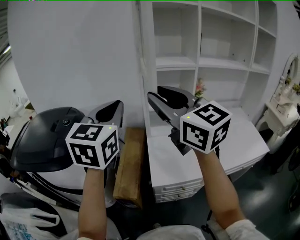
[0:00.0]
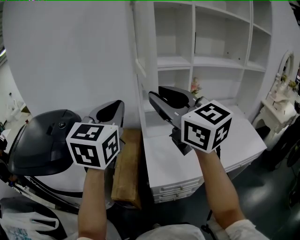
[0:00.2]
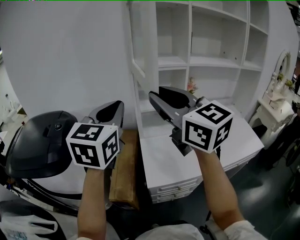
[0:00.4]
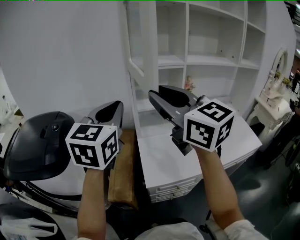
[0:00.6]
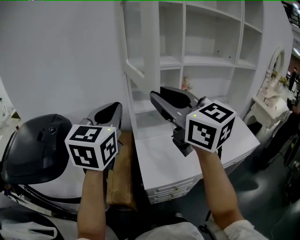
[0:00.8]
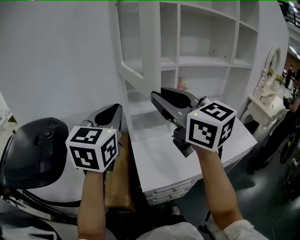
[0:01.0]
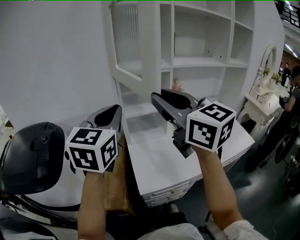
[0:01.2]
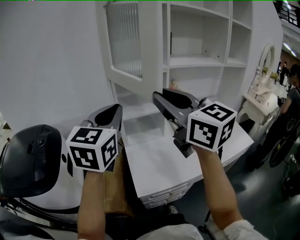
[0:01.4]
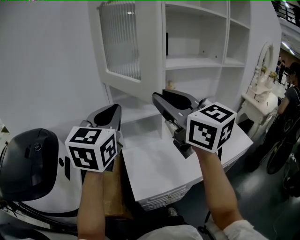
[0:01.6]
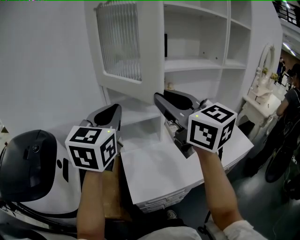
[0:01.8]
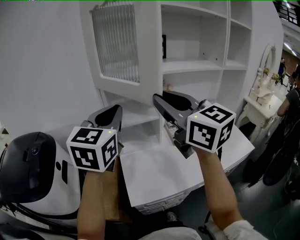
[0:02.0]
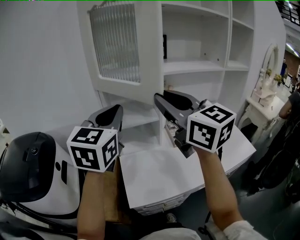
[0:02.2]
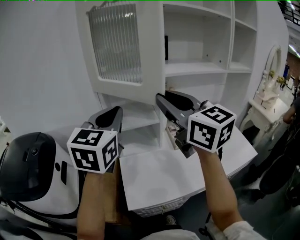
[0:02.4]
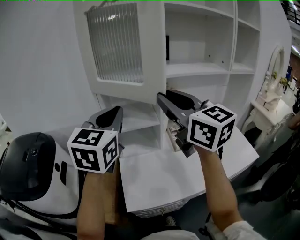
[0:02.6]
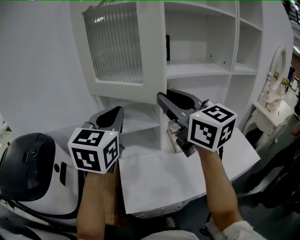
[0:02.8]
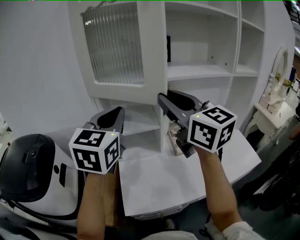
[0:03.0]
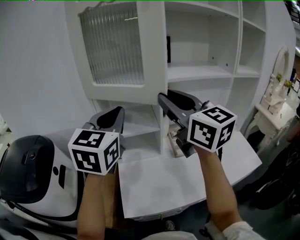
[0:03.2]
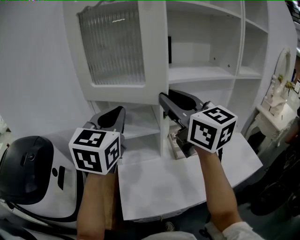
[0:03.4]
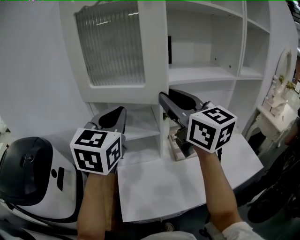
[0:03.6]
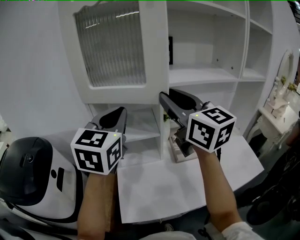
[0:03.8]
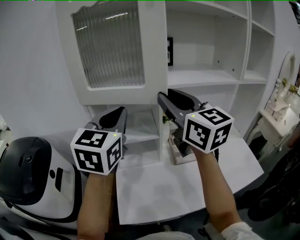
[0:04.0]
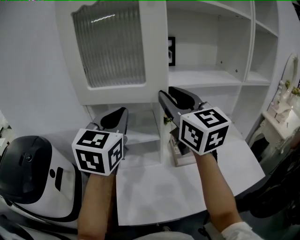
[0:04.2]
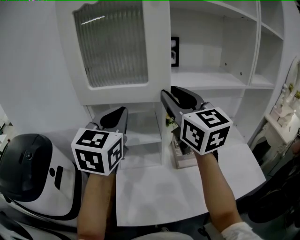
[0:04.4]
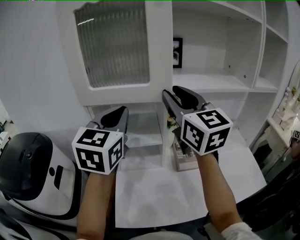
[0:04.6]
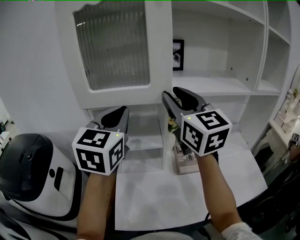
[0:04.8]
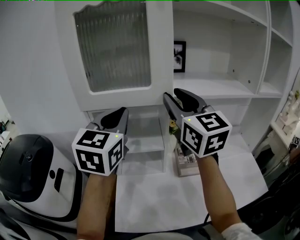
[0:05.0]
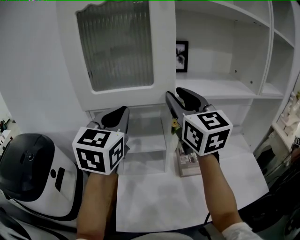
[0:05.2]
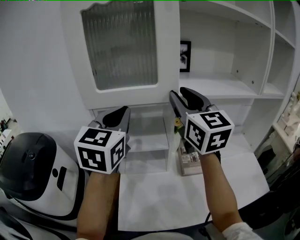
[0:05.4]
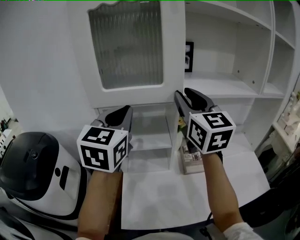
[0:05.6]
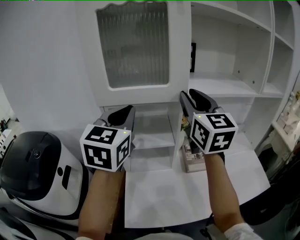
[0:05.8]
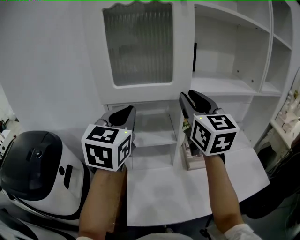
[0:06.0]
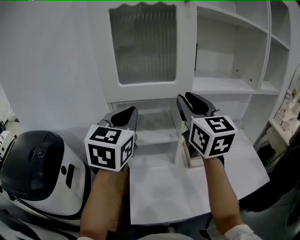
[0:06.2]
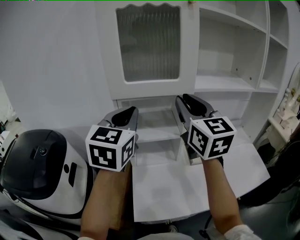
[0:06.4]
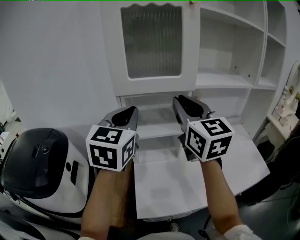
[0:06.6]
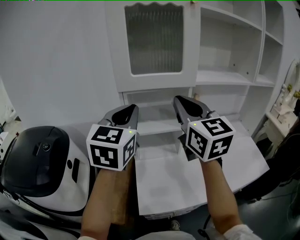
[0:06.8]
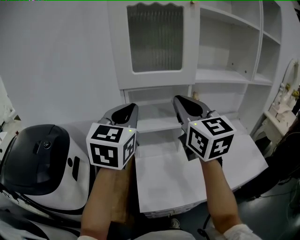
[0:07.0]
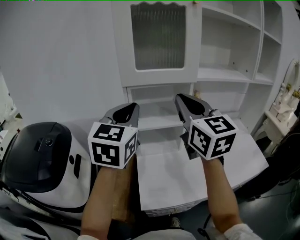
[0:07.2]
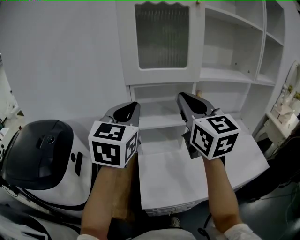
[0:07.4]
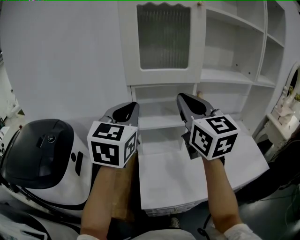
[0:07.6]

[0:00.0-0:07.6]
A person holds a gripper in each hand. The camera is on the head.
0:00.0 to 0:01.6: The left gripper goes approximately 15 cm to the right and forward. The right gripper travels to the right by about 15 cm.
0:01.6 to 0:03.0: The left gripper travels to the right and forward by roughly 10 cm. The right gripper moves forward and to the right, some 15 cm.
0:03.0 to 0:04.6: The two grippers go roughly 10 cm forward.
0:04.6 to 0:06.0: The left gripper heads to the left, covering approximately 5 cm.
0:06.0 to 0:07.6: The two grippers go roughly 15 cm backward and to the left. The right gripper closes its fingers.

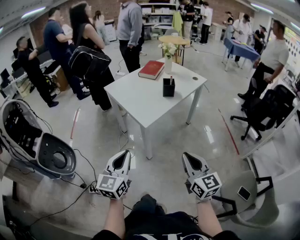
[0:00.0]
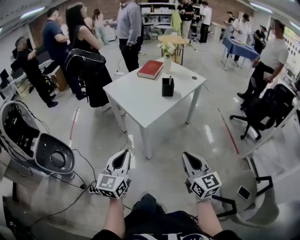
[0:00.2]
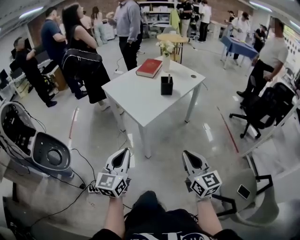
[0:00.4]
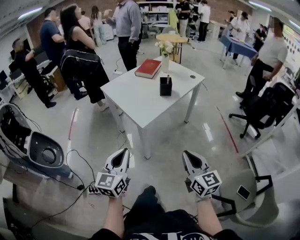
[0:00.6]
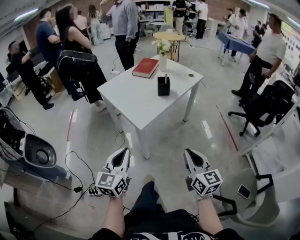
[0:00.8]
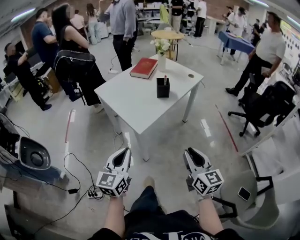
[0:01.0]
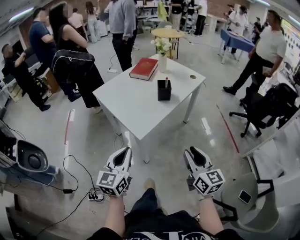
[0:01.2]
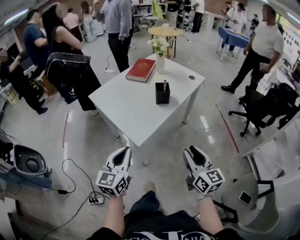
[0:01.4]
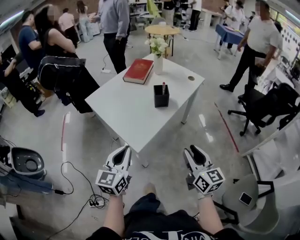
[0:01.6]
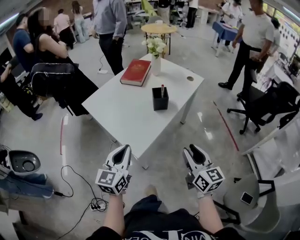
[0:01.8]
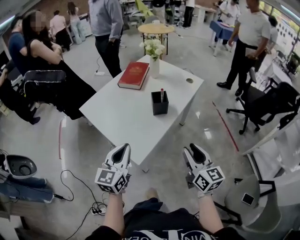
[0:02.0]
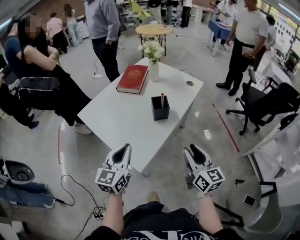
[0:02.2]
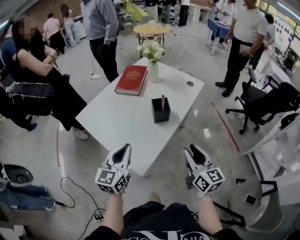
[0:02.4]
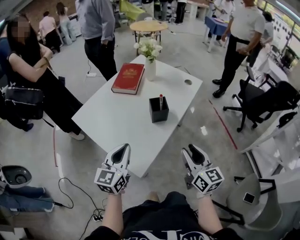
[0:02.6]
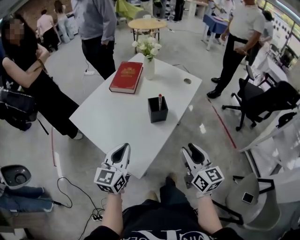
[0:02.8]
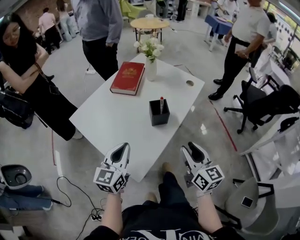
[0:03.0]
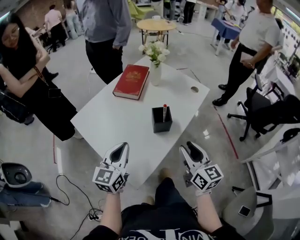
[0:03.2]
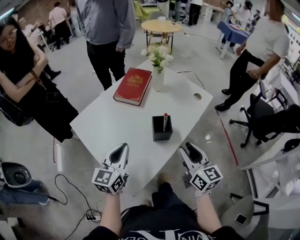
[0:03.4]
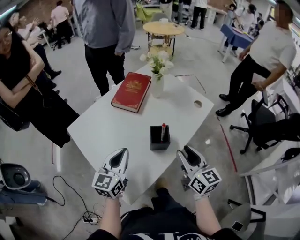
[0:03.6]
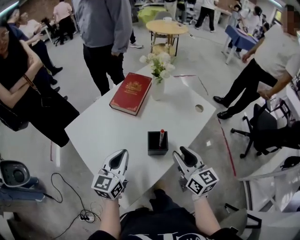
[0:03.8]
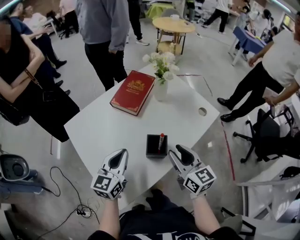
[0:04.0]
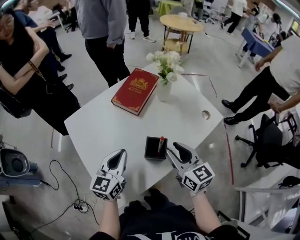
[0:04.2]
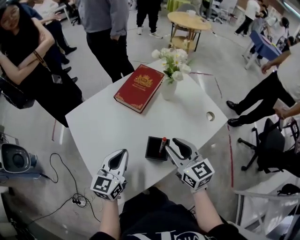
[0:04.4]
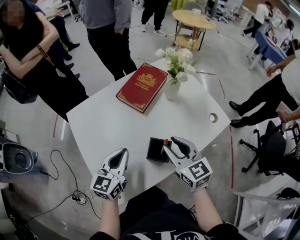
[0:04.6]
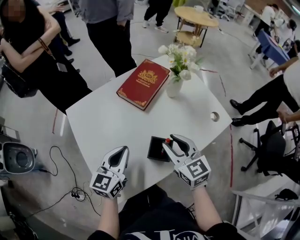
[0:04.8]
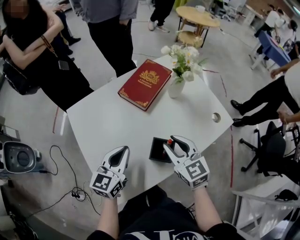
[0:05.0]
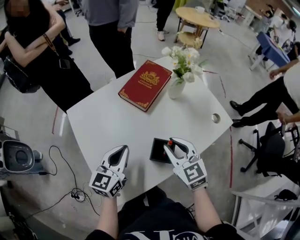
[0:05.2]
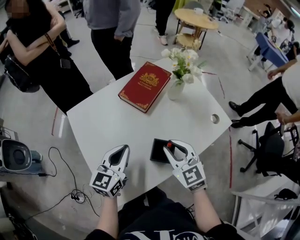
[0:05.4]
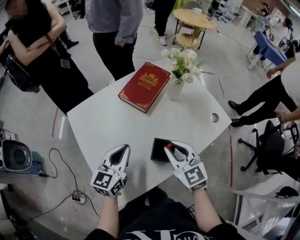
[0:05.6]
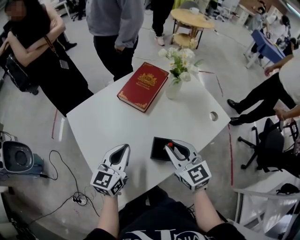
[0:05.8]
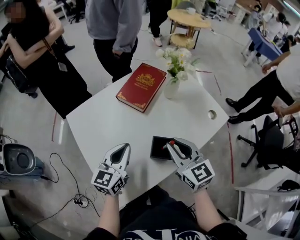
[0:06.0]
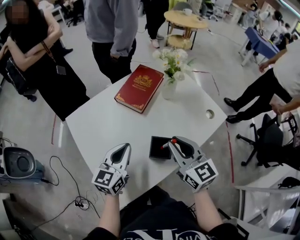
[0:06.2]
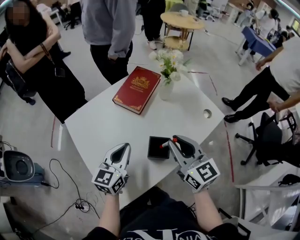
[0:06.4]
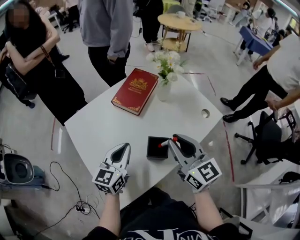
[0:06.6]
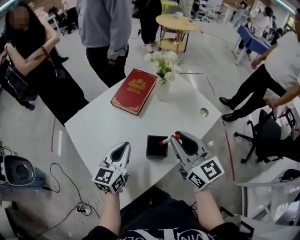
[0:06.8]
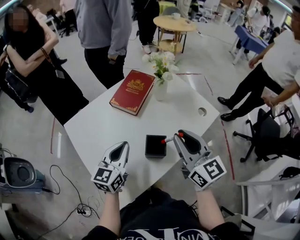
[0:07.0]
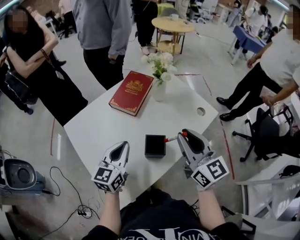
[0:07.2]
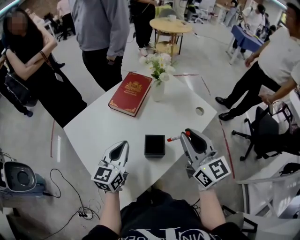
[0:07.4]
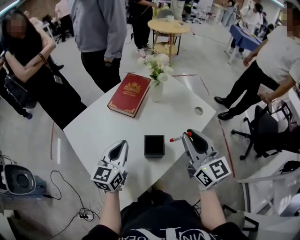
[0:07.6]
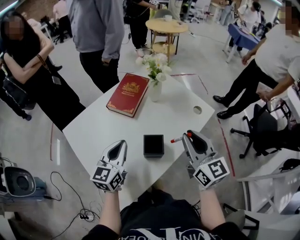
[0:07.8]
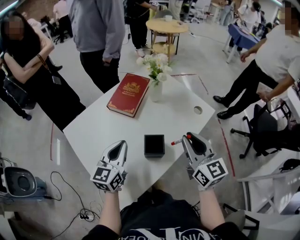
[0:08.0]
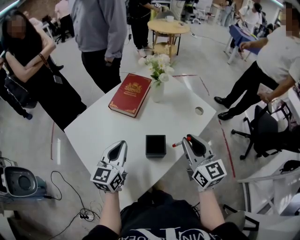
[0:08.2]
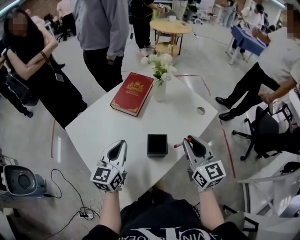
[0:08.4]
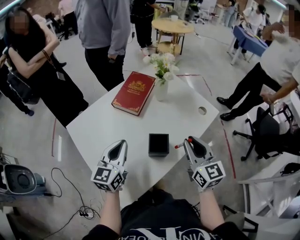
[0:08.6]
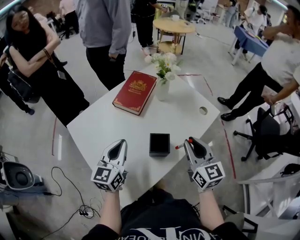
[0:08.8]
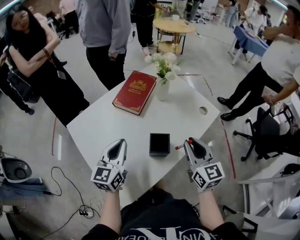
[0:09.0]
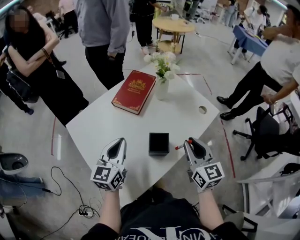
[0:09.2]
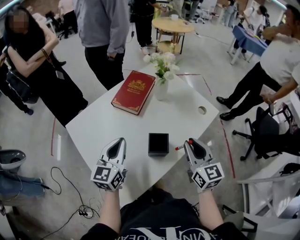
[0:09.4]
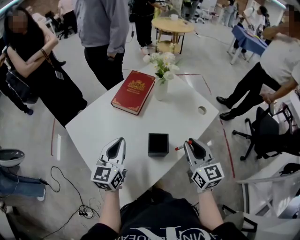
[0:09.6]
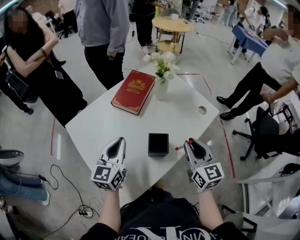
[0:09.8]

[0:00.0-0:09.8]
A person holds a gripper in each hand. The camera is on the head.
0:00.0 to 0:01.4: The grippers both shift forward by roughly 15 cm. The right gripper opens its fingers.
0:01.4 to 0:02.8: The grippers both shift forward by some 20 cm.
0:02.8 to 0:04.2: The left gripper travels forward by about 15 cm. The right gripper moves forward, approximately 25 cm, and changes its angle by approximately 30 degrees.
0:04.2 to 0:05.6: The right gripper ends up approximately 5 cm from where it was, and rotates approximately 20 degrees.
0:05.6 to 0:07.0: The right gripper moves upward and to the right, some 10 cm, and turns by about 30 degrees.
0:07.0 to 0:08.4: The right gripper shifts by some 5 cm.
0:08.4 to 0:09.8: There are only small adjustments of the grippers.

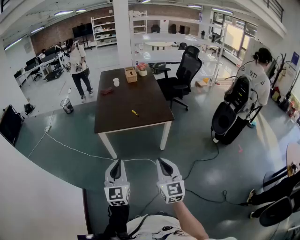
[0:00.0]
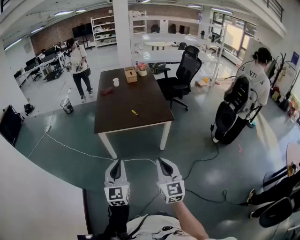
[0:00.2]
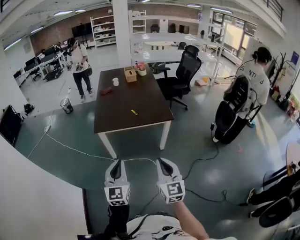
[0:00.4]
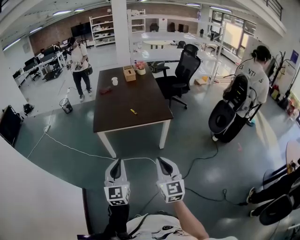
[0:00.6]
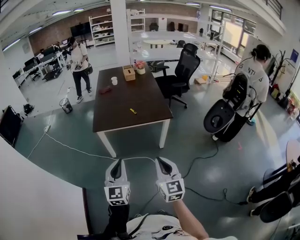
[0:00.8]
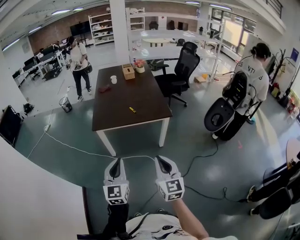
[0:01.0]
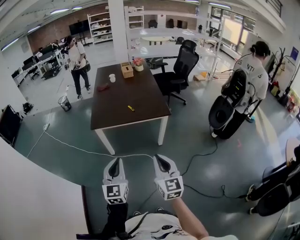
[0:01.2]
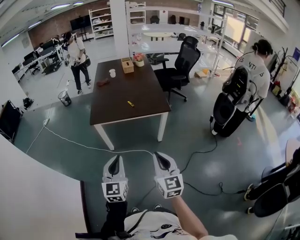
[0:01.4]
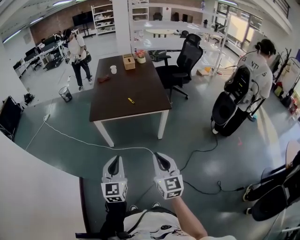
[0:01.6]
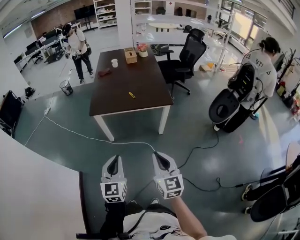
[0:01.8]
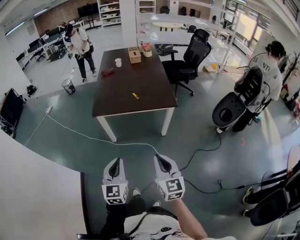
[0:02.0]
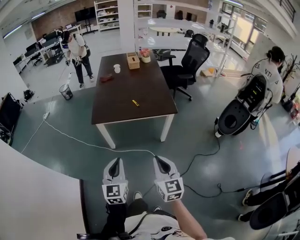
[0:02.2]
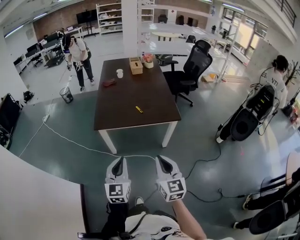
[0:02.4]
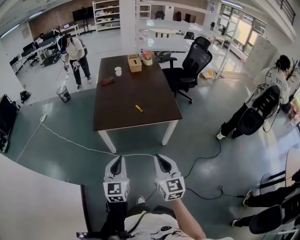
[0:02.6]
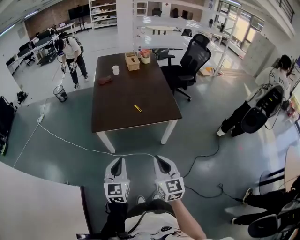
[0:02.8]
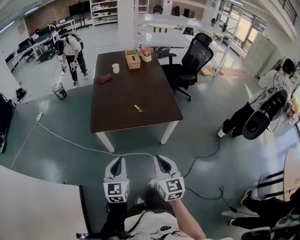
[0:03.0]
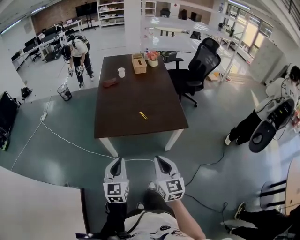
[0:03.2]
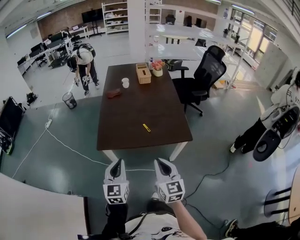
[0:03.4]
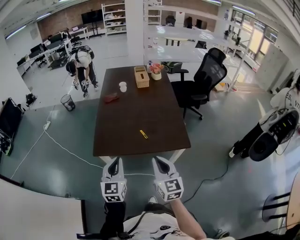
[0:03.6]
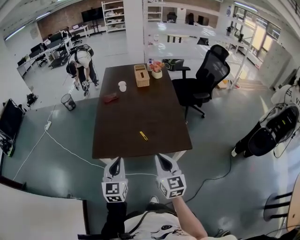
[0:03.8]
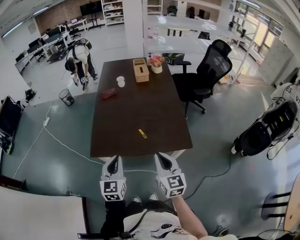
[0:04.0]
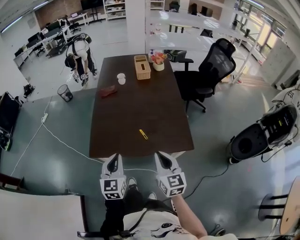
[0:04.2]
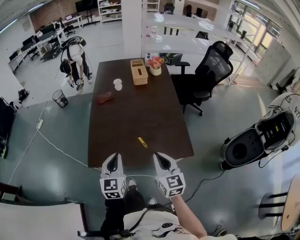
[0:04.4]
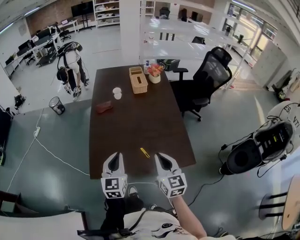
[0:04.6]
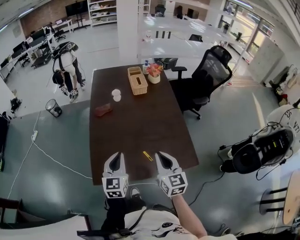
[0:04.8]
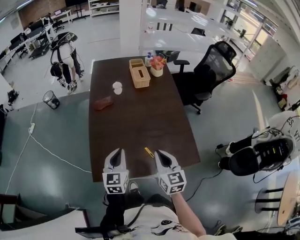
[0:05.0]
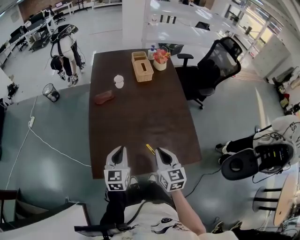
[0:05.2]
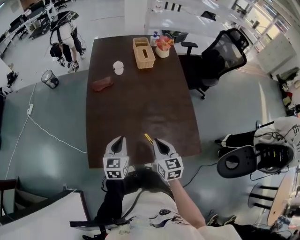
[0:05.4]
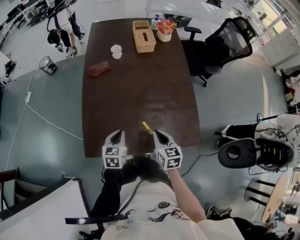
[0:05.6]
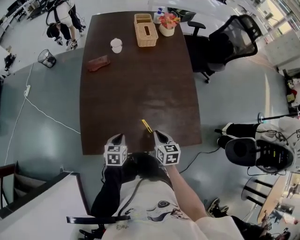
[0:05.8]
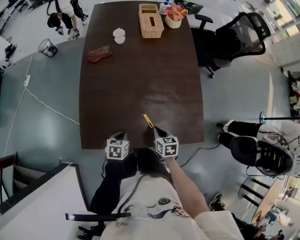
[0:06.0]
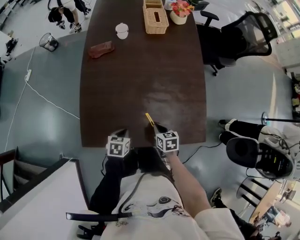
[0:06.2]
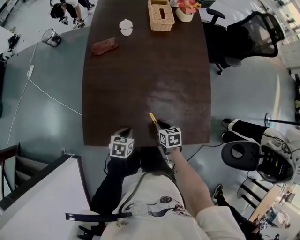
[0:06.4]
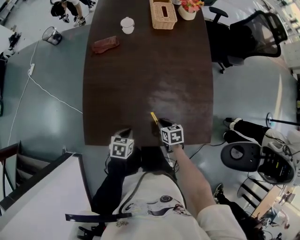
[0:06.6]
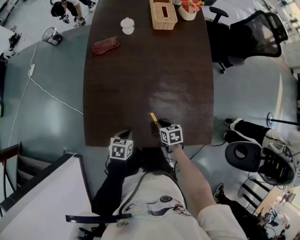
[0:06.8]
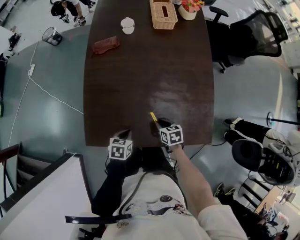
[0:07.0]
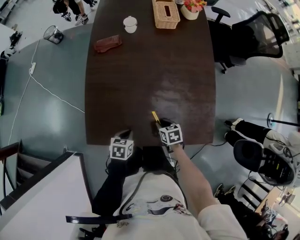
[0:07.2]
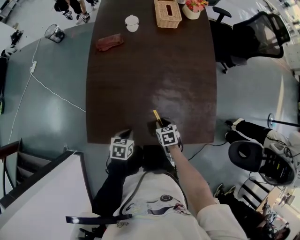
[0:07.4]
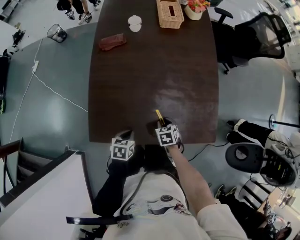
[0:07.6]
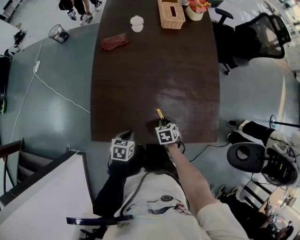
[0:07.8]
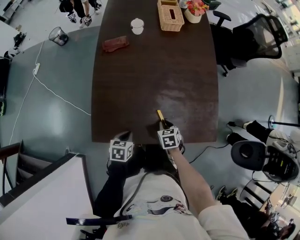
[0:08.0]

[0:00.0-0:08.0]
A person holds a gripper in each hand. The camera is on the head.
0:00.0 to 0:01.6: The grippers stay close to where they were, moving slightly.
0:01.6 to 0:03.2: Both grippers travel together forward, about 20 cm.
0:03.2 to 0:04.8: Both grippers move forward, roughly 30 cm.
0:04.8 to 0:06.4: The two grippers go some 25 cm downward. The right gripper points its fingers roughly 40 degrees further downward. The left gripper tilts its fingers about 50 degrees downward.
0:06.4 to 0:08.0: The left gripper travels to the left by roughly 5 cm.
